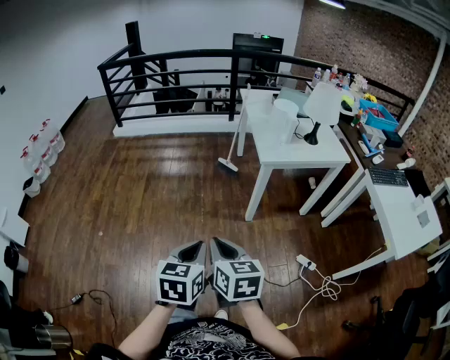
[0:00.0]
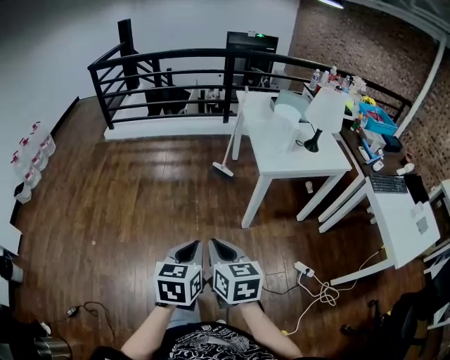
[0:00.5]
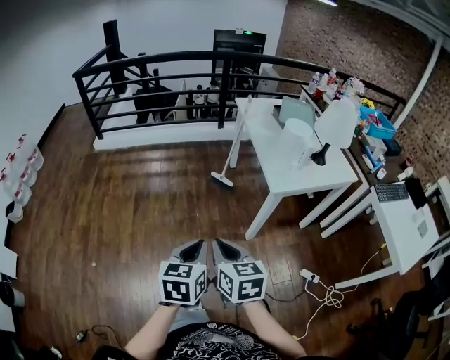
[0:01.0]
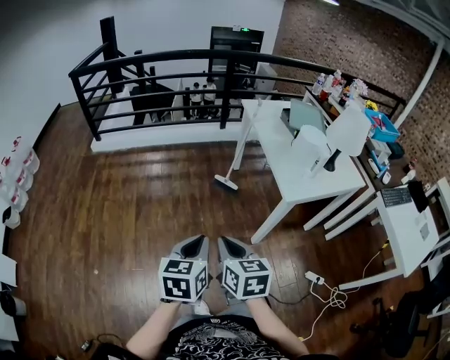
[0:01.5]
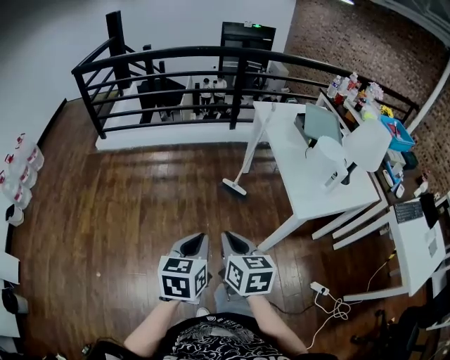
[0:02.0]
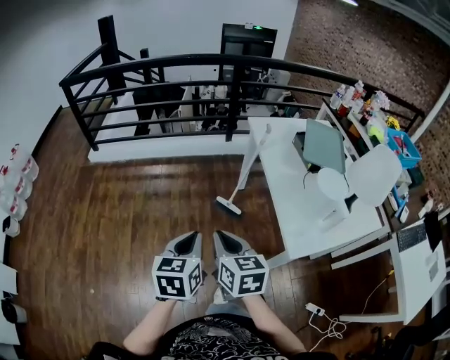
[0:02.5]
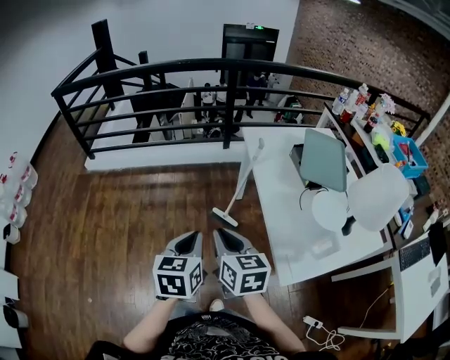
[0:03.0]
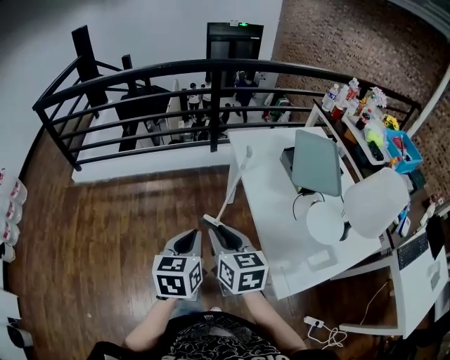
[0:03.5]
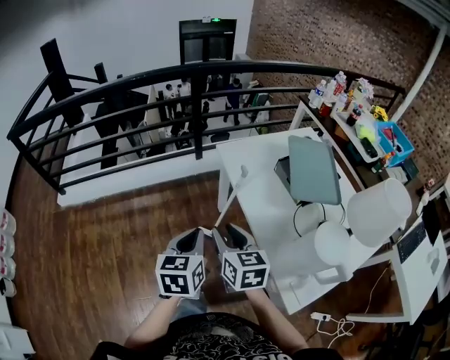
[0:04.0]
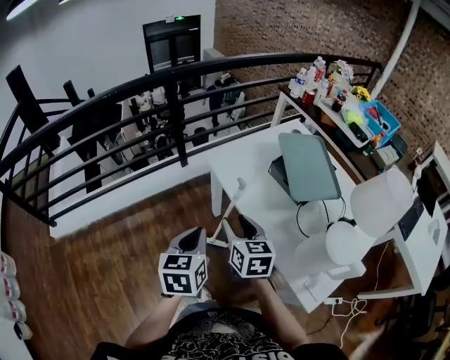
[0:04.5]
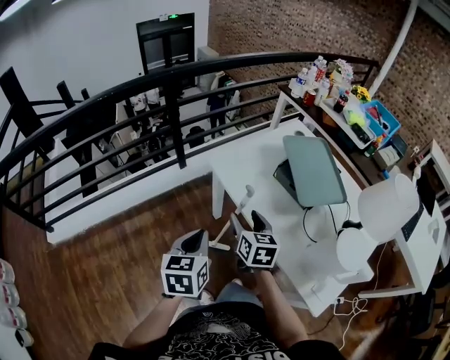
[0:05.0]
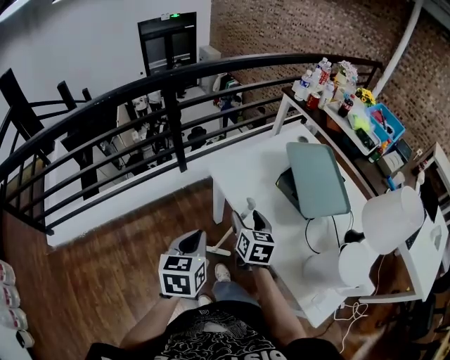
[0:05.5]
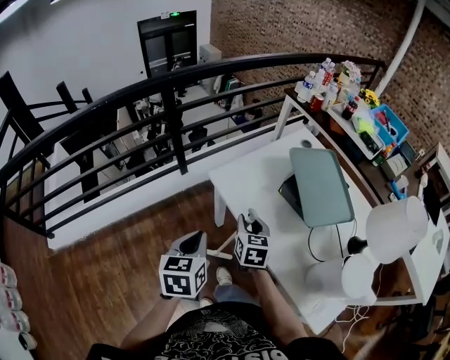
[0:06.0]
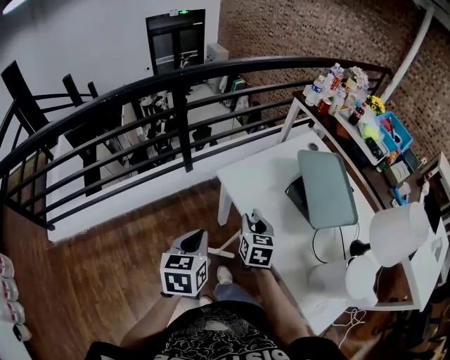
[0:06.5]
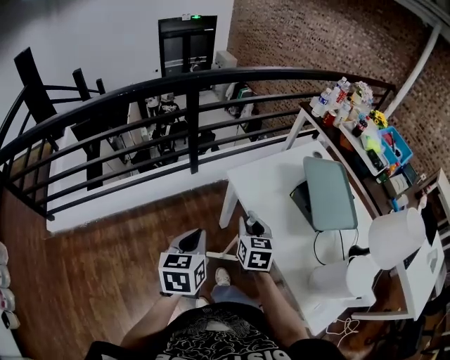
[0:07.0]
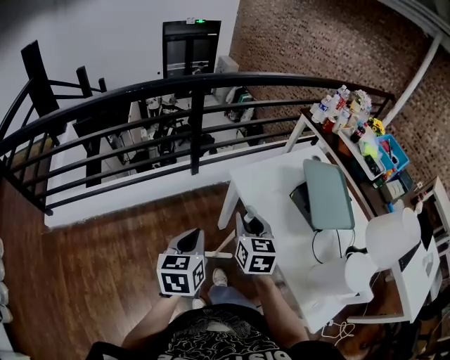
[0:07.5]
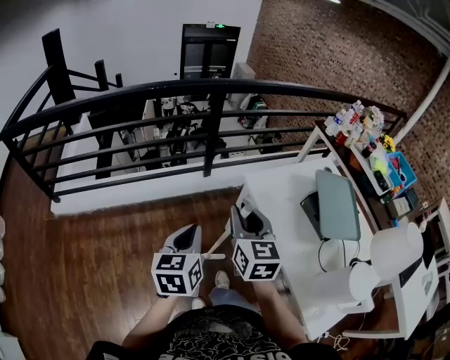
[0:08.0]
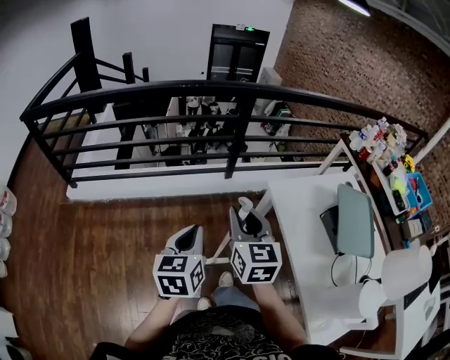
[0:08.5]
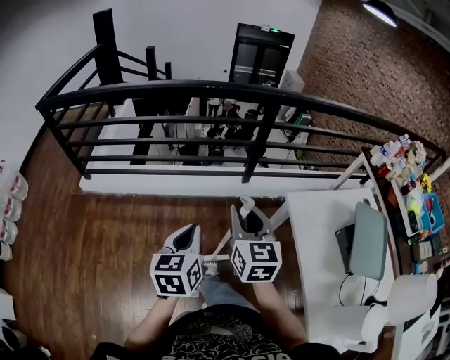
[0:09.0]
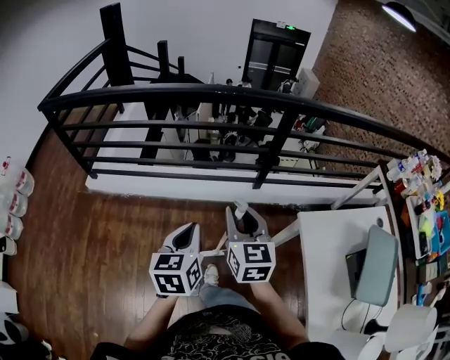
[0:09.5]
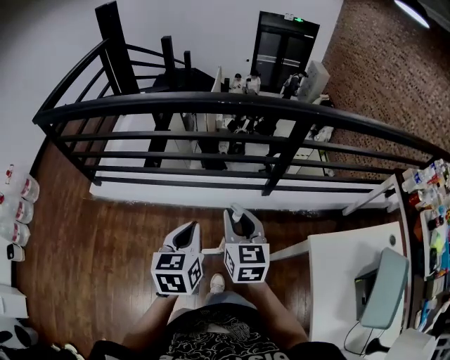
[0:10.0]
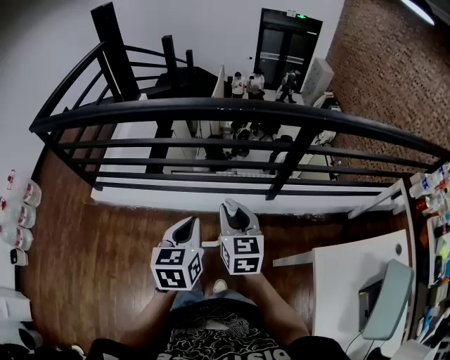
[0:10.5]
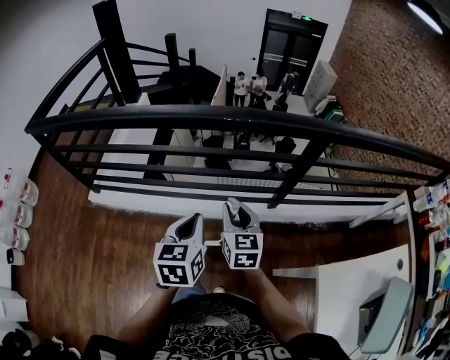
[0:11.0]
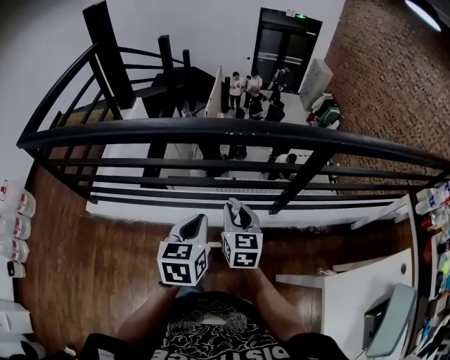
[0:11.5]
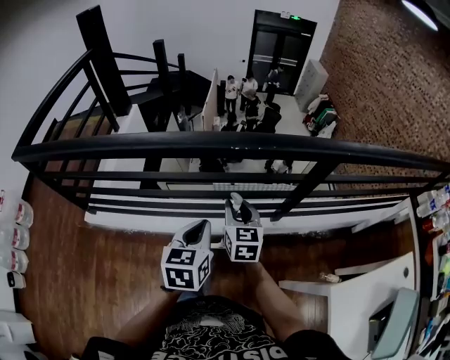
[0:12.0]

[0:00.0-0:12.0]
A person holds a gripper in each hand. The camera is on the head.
0:00.0 to 0:02.0: The two grippers travel together, forward, roughly 40 cm.
0:02.0 to 0:04.0: The pair of grippers is taken forward, about 50 cm. The right gripper opens up.
0:04.0 to 0:06.0: Both grippers travel together forward, about 20 cm. The right gripper rotates about 30 degrees, and opens, then closes once more.
0:06.0 to 0:08.0: The left gripper shifts roughly 15 cm to the left and backward, and rotates roughly 20 degrees. The right gripper is displaced upward, to the left and backward by about 25 cm, and changes its angle by some 30 degrees.
0:08.0 to 0:10.0: The two grippers go about 30 cm forward and to the left. The left gripper changes its angle by roughly 20 degrees, while the right gripper rotates some 20 degrees.
0:10.0 to 0:12.0: Both grippers travel together forward, some 25 cm.

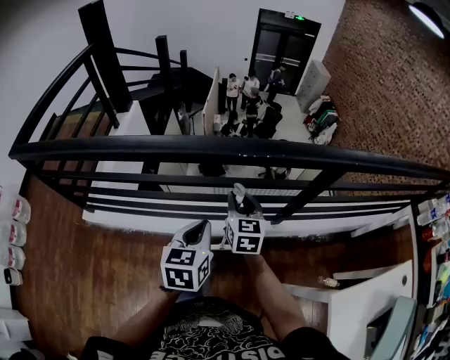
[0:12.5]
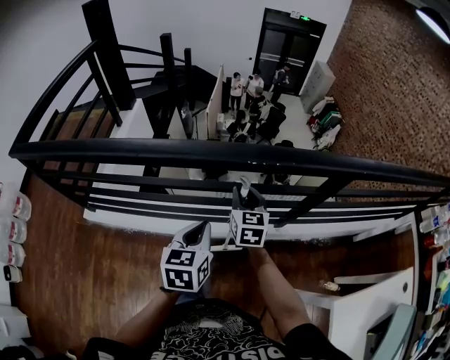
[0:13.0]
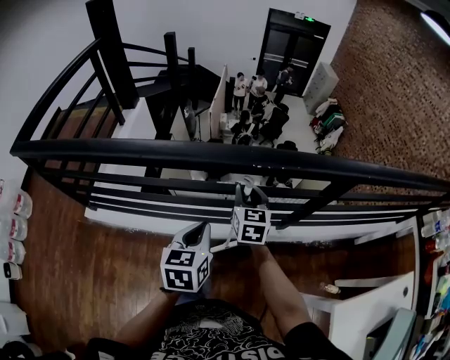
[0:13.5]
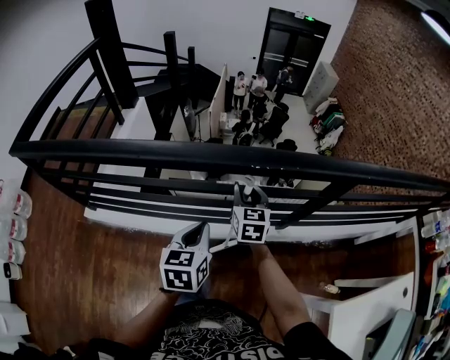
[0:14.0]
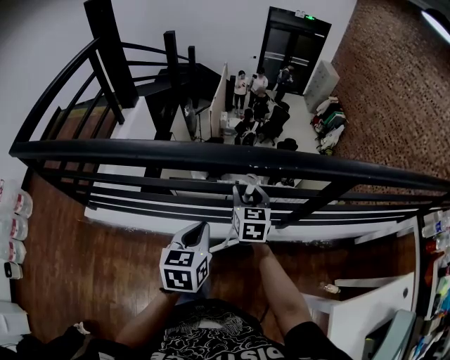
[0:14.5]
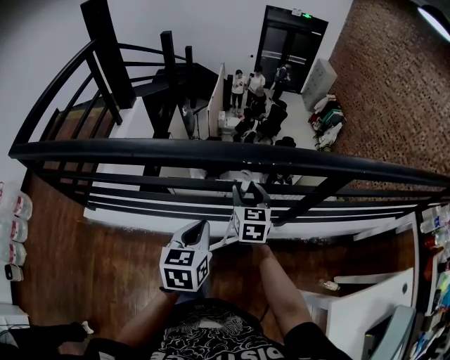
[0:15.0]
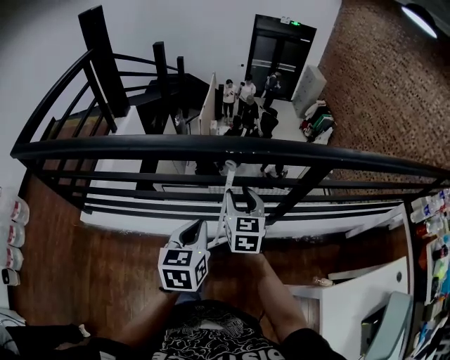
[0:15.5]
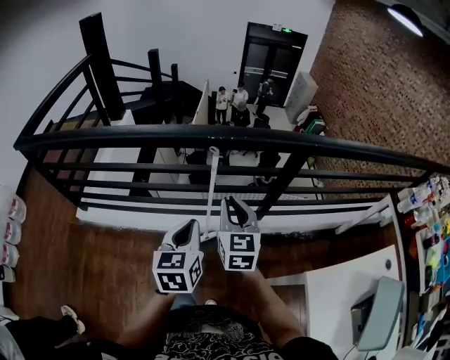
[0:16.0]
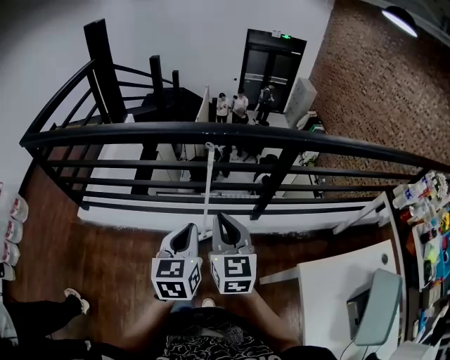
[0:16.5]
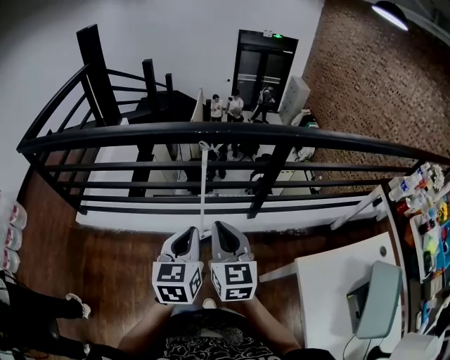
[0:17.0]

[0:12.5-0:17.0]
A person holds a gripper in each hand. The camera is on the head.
0:12.5 to 0:14.5: The right gripper goes roughly 5 cm forward.
0:14.5 to 0:17.0: The right gripper shifts about 40 cm backward and upward, and closes, while the left gripper goes roughly 25 cm backward, to the right and upward.

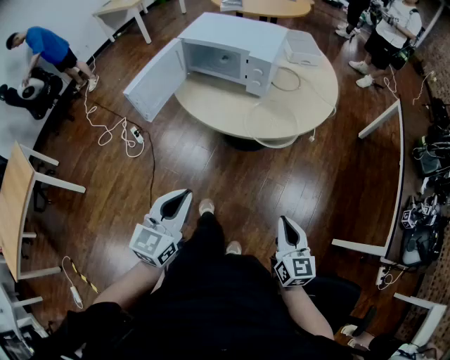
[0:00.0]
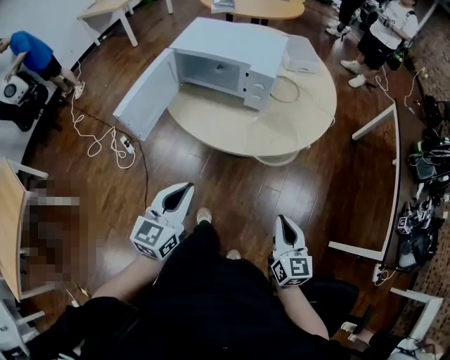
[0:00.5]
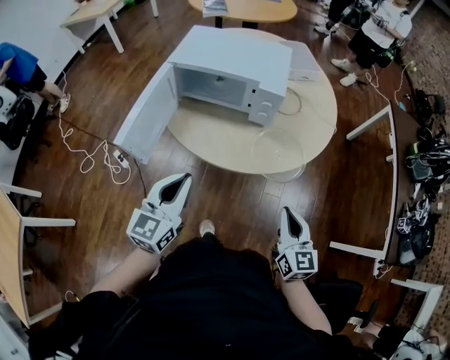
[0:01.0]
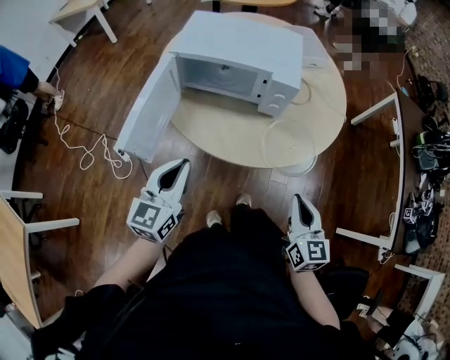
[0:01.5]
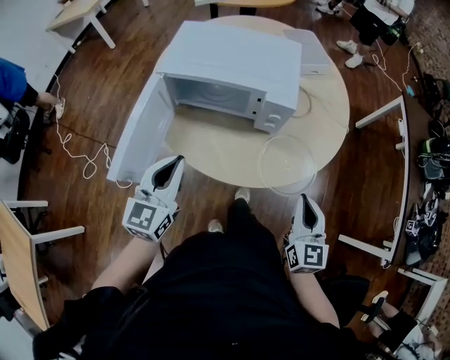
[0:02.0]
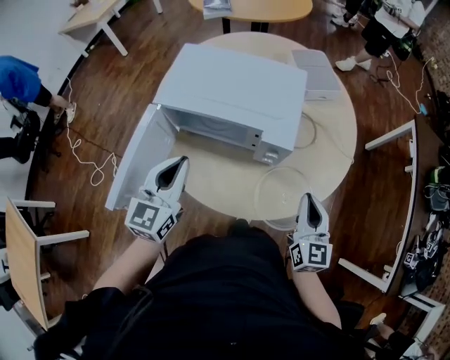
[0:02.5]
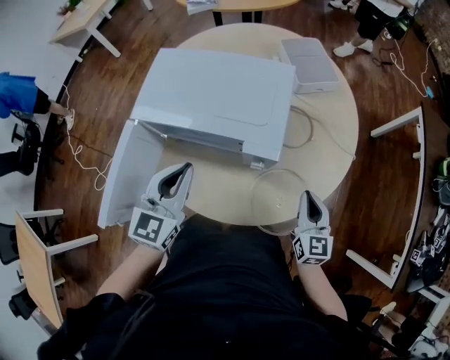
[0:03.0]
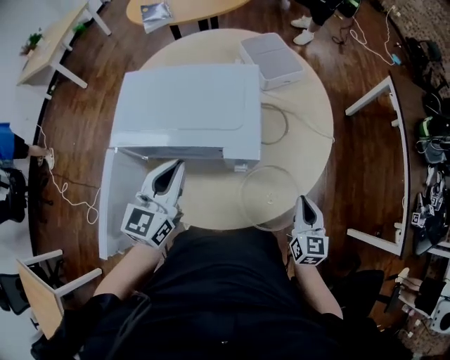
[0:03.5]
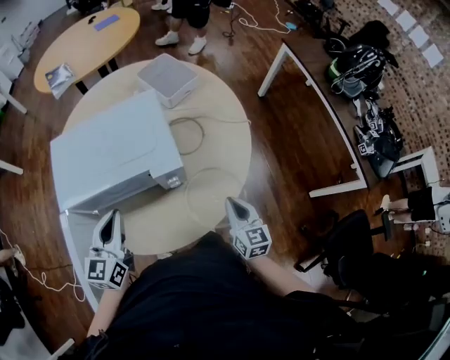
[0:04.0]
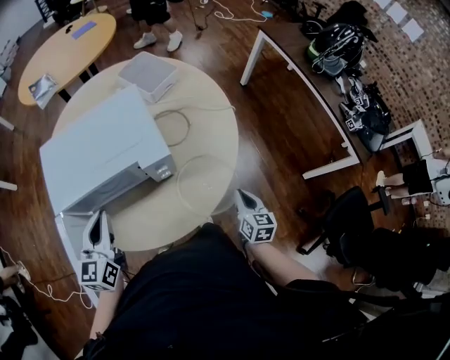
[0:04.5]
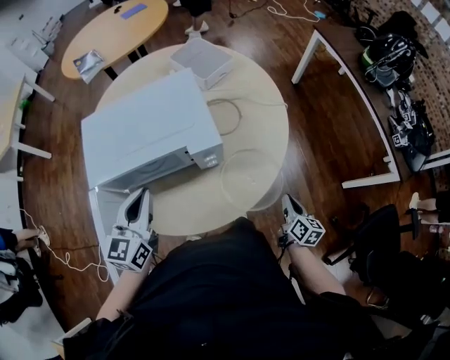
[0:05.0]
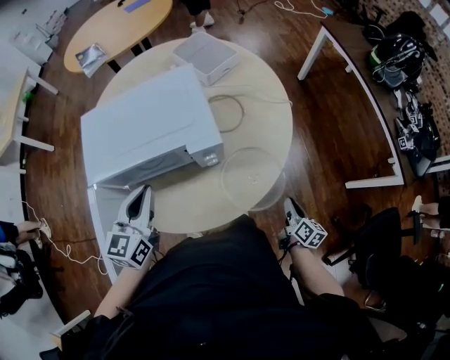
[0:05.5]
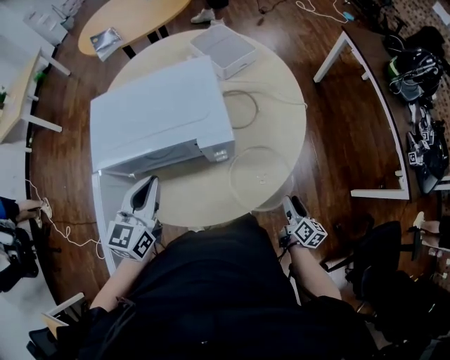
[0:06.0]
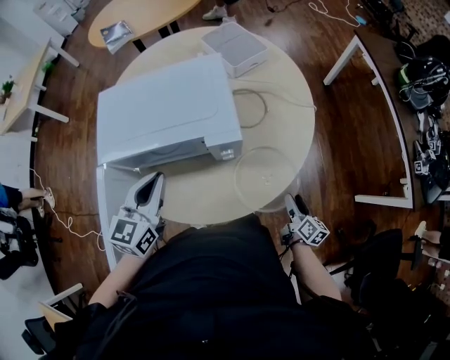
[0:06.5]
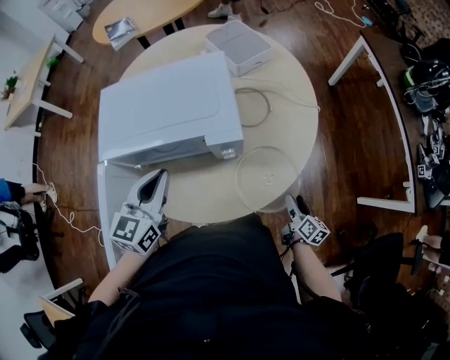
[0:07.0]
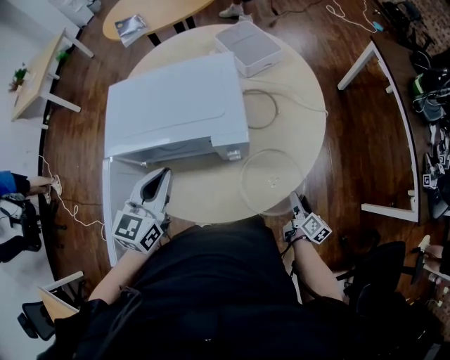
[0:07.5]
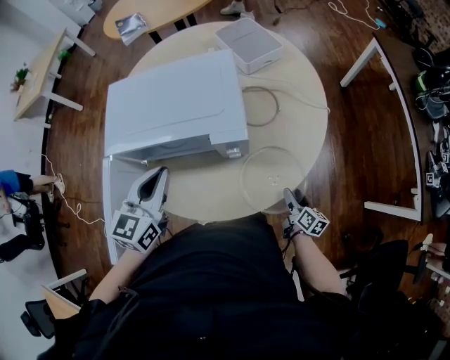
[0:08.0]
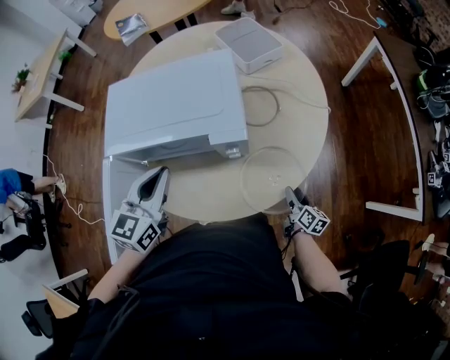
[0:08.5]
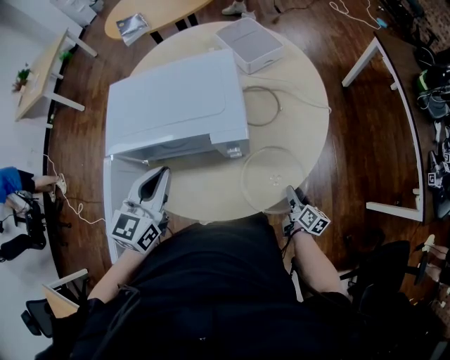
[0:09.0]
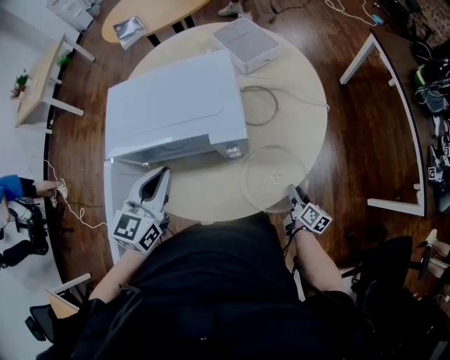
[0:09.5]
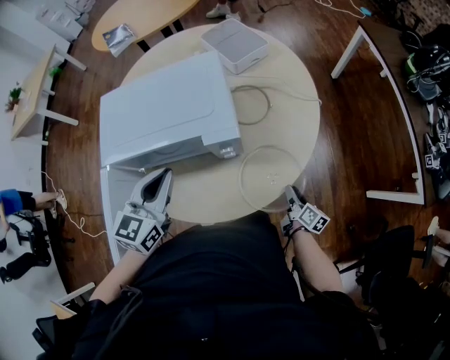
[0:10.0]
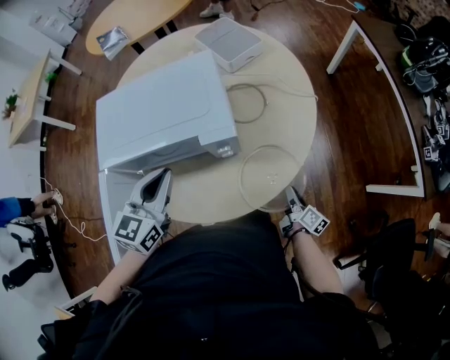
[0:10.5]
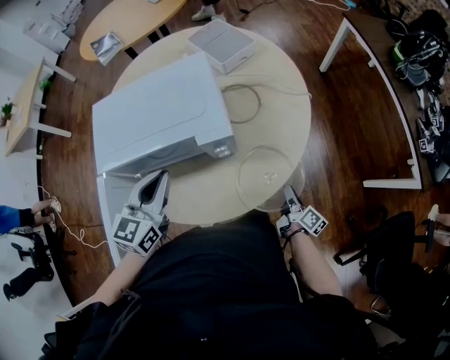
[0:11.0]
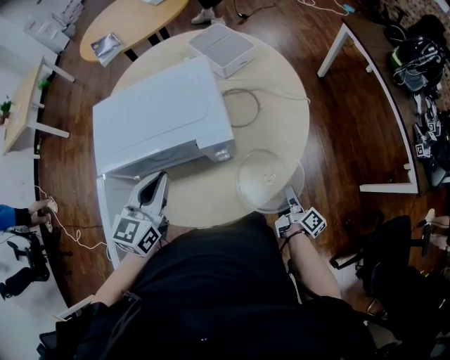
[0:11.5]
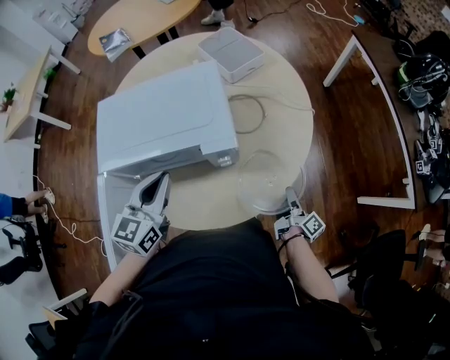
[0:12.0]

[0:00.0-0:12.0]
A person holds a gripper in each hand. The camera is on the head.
0:00.0 to 0:02.0: The left gripper ends up roughly 30 cm from where it was.
0:02.0 to 0:04.0: The left gripper ends up approximately 15 cm from where it was.
